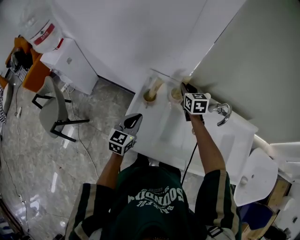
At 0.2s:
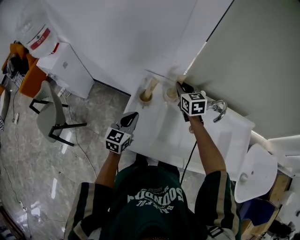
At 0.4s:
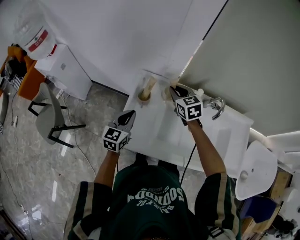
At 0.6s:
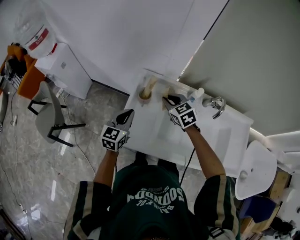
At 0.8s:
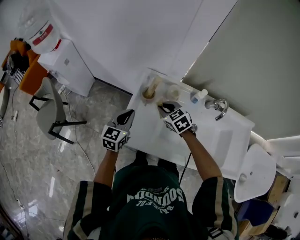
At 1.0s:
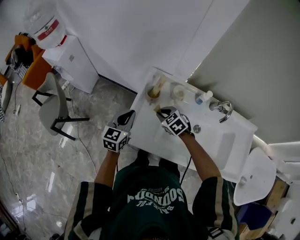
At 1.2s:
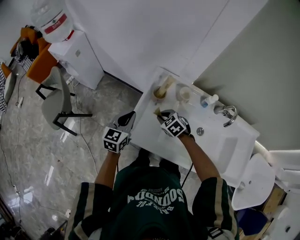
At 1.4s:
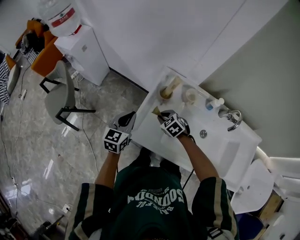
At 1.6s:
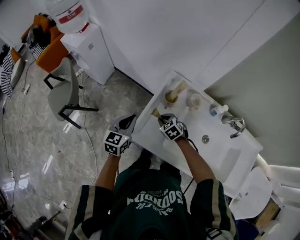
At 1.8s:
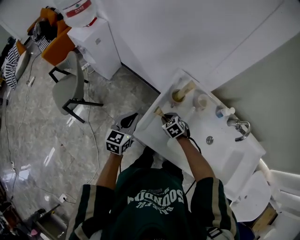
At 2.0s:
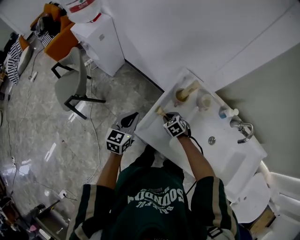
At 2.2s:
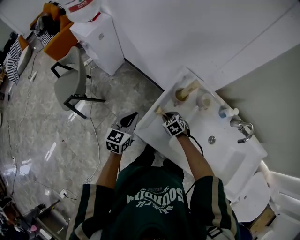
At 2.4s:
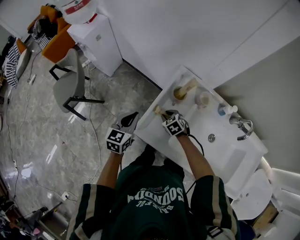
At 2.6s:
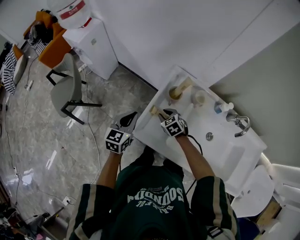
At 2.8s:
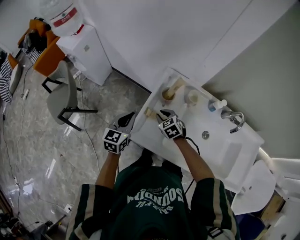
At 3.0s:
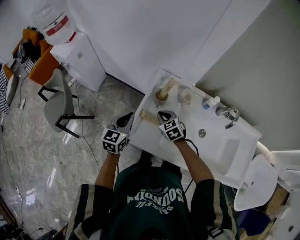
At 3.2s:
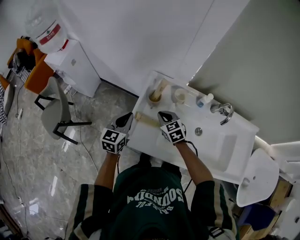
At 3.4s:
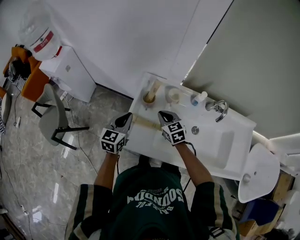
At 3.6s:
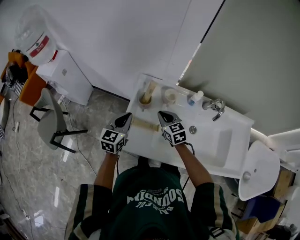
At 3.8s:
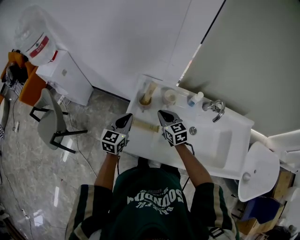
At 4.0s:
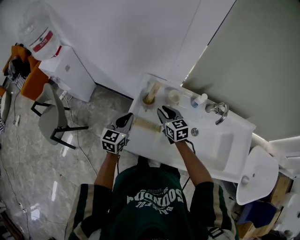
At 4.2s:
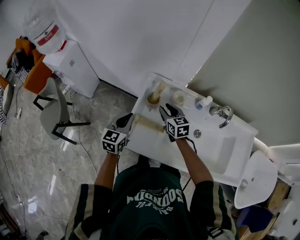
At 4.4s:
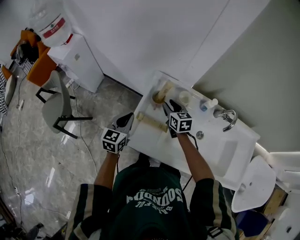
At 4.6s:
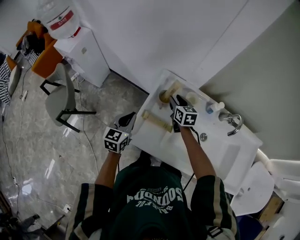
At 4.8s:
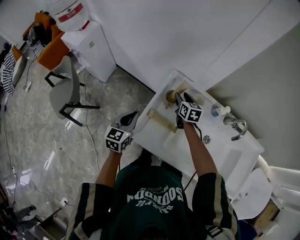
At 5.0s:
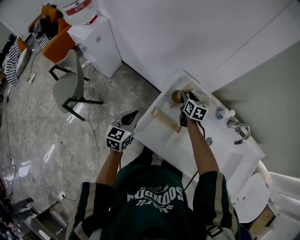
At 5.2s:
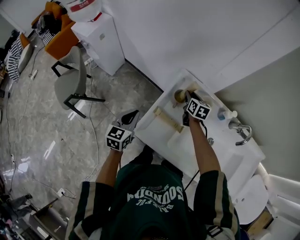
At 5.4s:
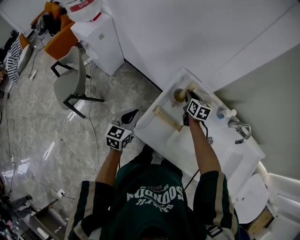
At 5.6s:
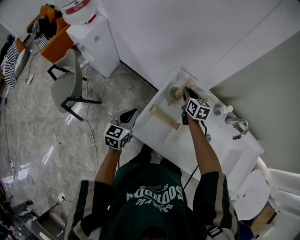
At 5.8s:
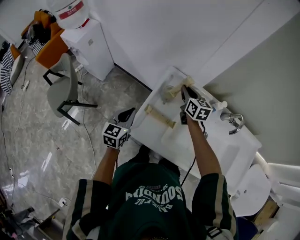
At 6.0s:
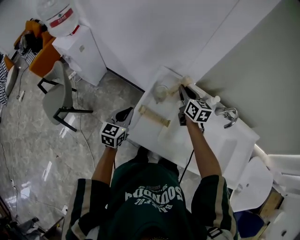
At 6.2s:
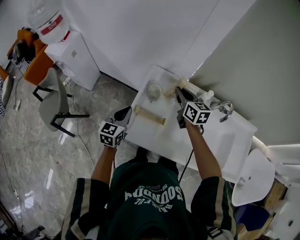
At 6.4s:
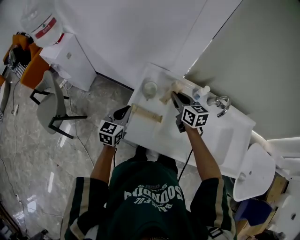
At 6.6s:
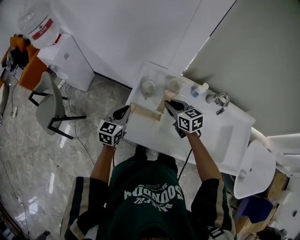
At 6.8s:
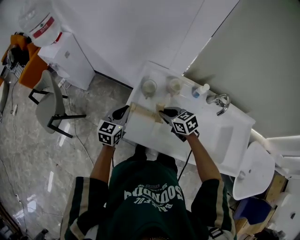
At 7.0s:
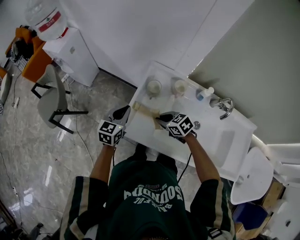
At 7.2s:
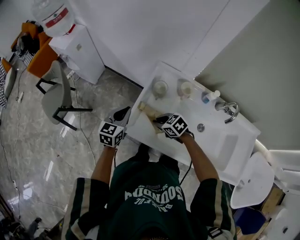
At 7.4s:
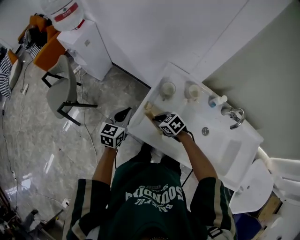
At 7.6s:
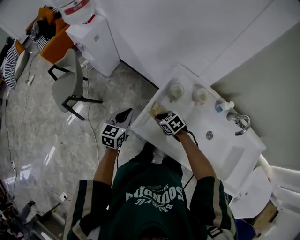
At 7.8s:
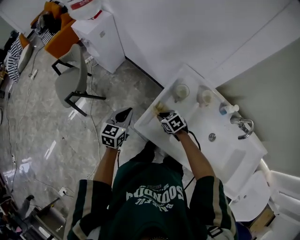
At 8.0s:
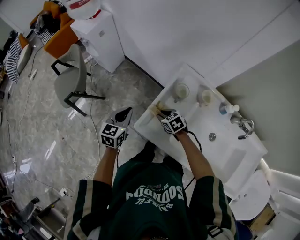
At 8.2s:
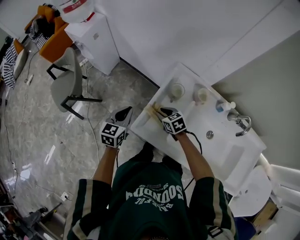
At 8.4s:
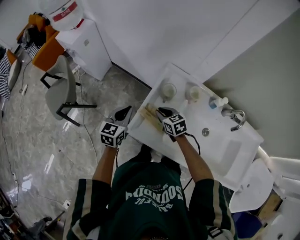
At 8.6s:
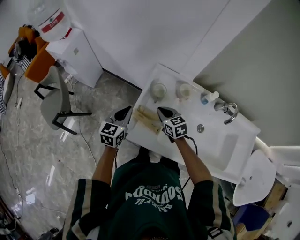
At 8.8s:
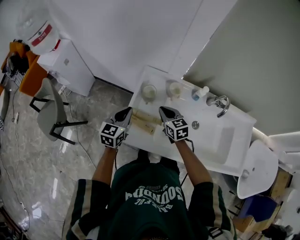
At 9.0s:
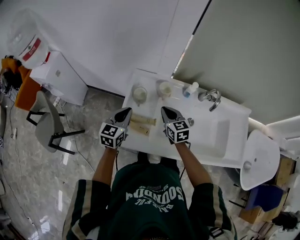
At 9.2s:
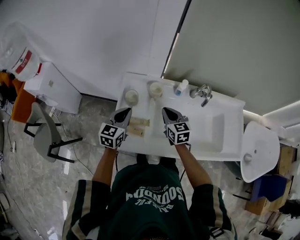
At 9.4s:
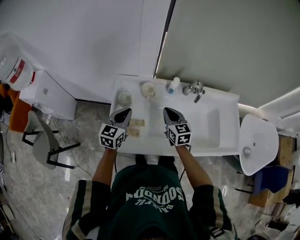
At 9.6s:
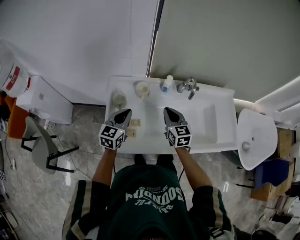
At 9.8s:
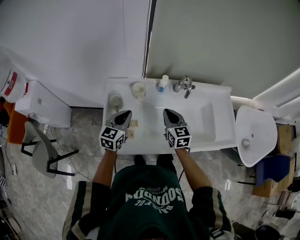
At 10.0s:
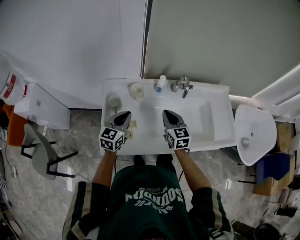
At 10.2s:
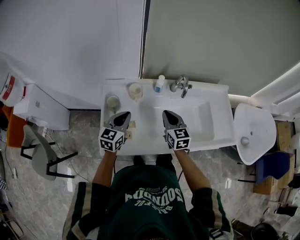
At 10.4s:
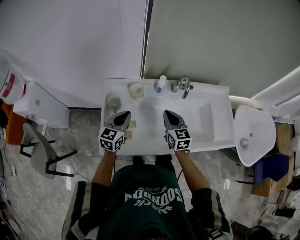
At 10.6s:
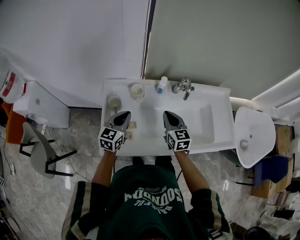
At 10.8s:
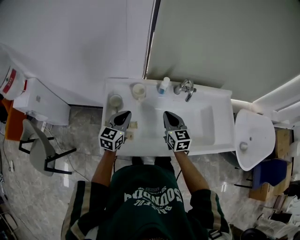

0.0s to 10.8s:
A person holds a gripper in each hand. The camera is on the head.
0.0s to 1.6s: The right gripper moves some 30 cm, and changes its angle by some 50 degrees; the left gripper ends up some 15 cm from where it was.
1.6s to 3.0s: The right gripper travels upward by roughly 5 cm.
3.0s to 4.6s: The right gripper goes some 10 cm forward and to the right, changes its angle by some 30 degrees, and opens up.
4.6s to 6.2s: The right gripper moves upward and to the right, about 10 cm, and closes its fingers.
6.2s to 7.8s: The left gripper ends up approximately 10 cm from where it was. Meanwhile the right gripper travels downward by roughly 20 cm, and tilts its fingers roughly 40 degrees downward.
7.8s to 9.2s: The right gripper changes place by approximately 30 cm, and tips its fingers upward by about 30 degrees; the left gripper shifts by some 20 cm, and rotates about 30 degrees.
9.2s to 10.8s: Both grippers move to the right, about 10 cm.

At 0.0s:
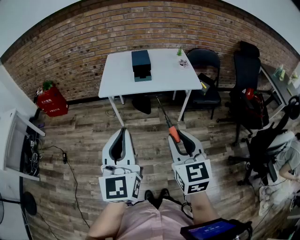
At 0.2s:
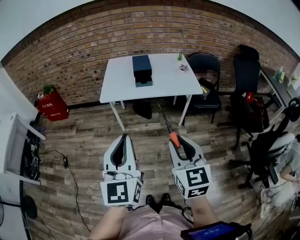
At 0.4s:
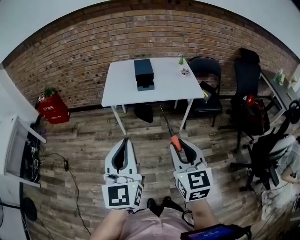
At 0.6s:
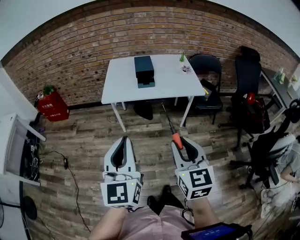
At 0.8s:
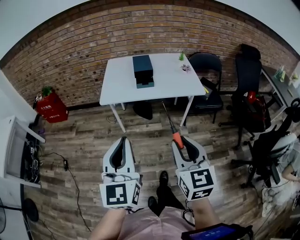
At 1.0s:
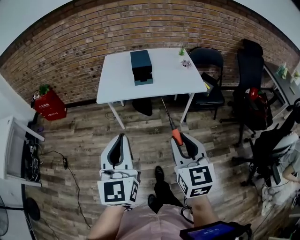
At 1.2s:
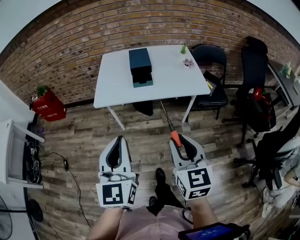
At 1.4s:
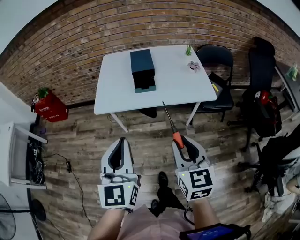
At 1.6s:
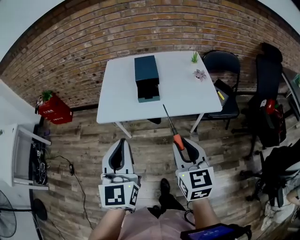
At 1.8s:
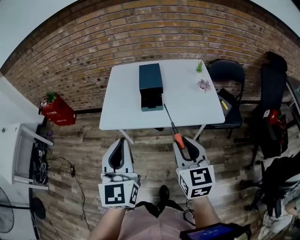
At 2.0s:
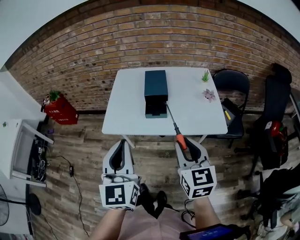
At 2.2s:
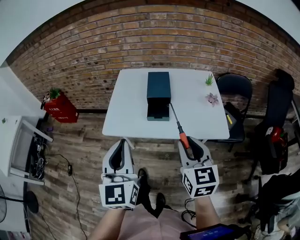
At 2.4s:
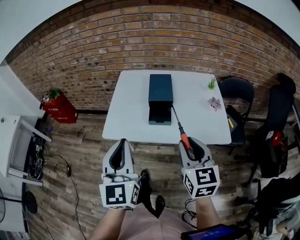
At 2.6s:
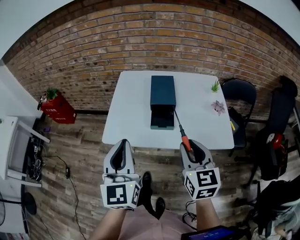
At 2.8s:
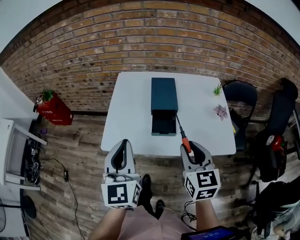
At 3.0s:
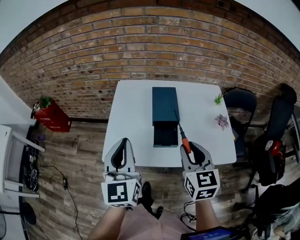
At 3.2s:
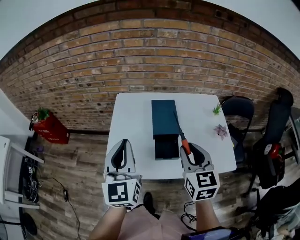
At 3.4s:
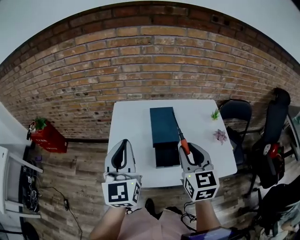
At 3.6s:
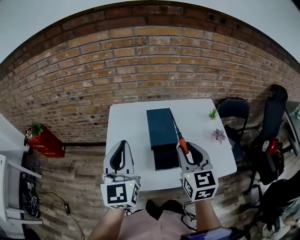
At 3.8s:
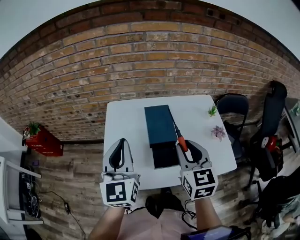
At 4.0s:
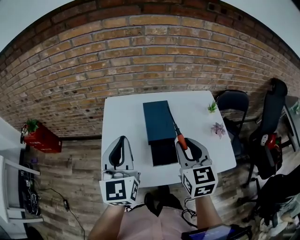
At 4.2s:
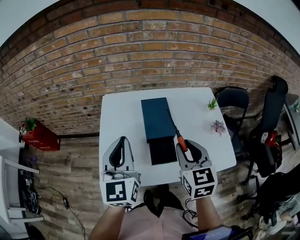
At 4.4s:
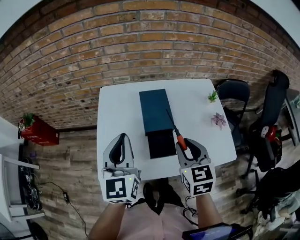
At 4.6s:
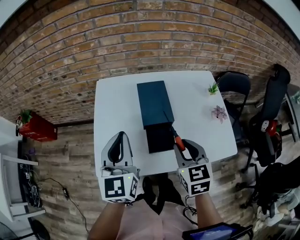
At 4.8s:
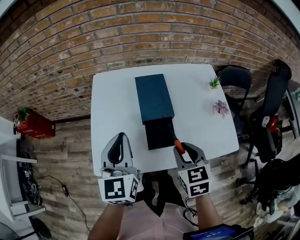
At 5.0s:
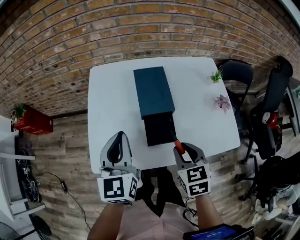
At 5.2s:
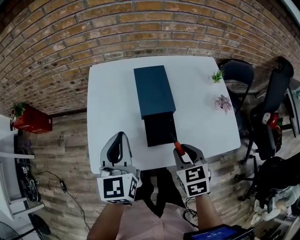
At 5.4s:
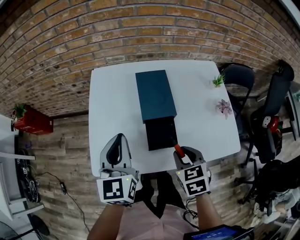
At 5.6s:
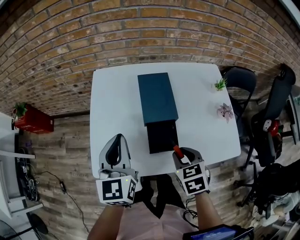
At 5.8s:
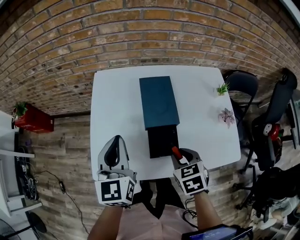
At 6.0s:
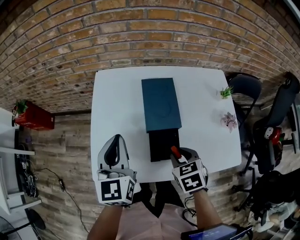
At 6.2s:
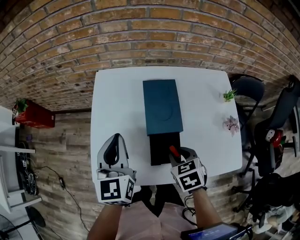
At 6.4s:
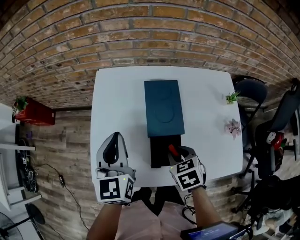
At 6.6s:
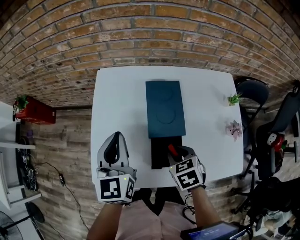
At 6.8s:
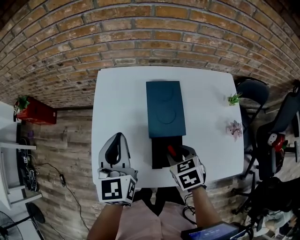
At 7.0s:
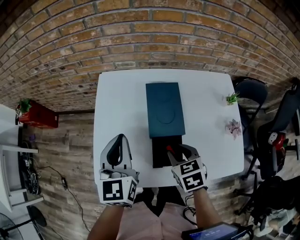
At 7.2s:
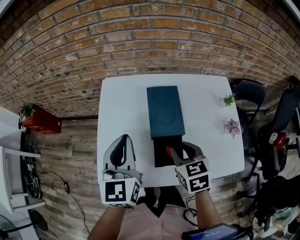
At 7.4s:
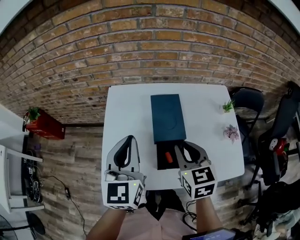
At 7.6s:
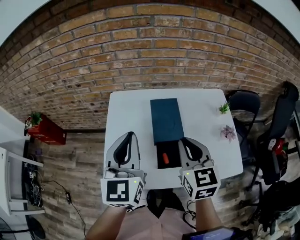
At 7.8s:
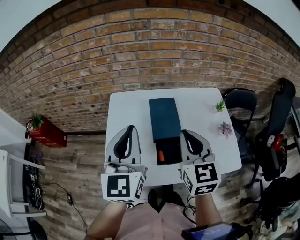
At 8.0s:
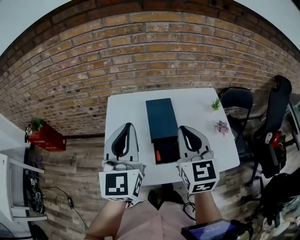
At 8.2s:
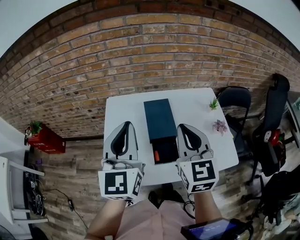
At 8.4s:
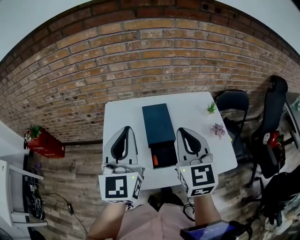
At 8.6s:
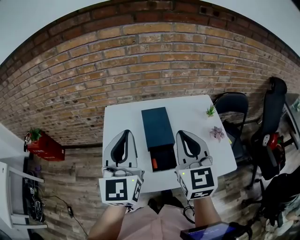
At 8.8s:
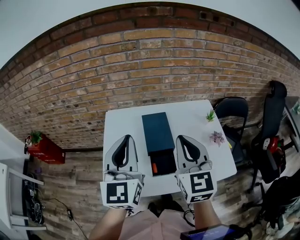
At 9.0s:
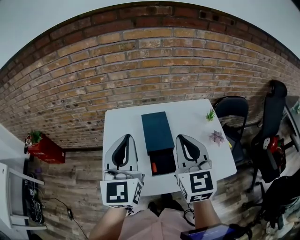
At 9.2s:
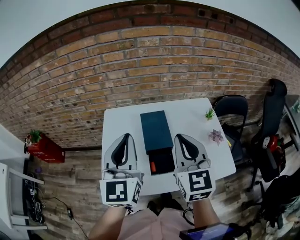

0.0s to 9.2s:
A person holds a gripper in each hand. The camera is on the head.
0.0s to 1.6s: The two grippers go roughly 20 cm forward.
1.6s to 3.0s: Both grippers move forward, approximately 25 cm.
3.0s to 4.6s: The left gripper goes roughly 10 cm forward, while the right gripper goes roughly 10 cm downward and forward.
4.6s to 6.2s: The right gripper is displaced downward by roughly 10 cm, and rotates about 30 degrees, while the left gripper moves forward and downward, approximately 10 cm.
6.2s to 7.6s: The right gripper heads upward, covering some 20 cm, and angles its fingers upward, by roughly 40 degrees. Meanwhile the left gripper travels upward by roughly 10 cm.
7.6s to 9.2s: The left gripper travels upward by approximately 5 cm. The right gripper goes approximately 10 cm upward.

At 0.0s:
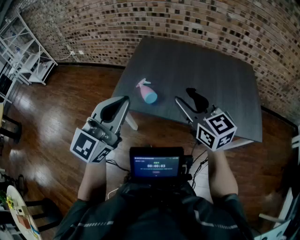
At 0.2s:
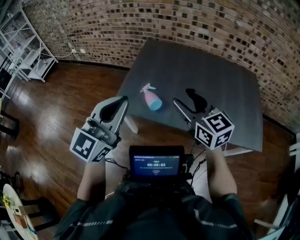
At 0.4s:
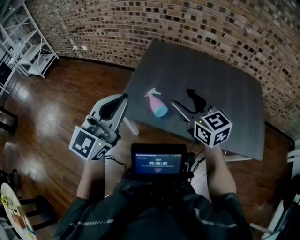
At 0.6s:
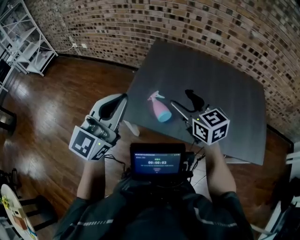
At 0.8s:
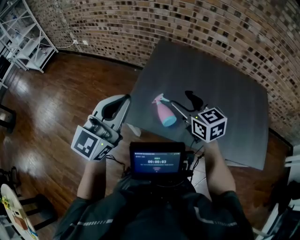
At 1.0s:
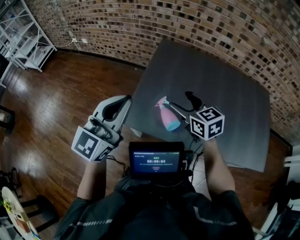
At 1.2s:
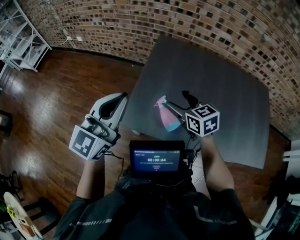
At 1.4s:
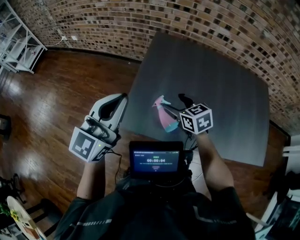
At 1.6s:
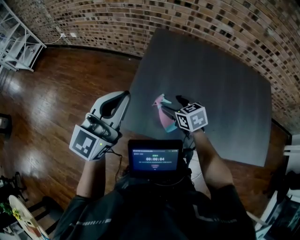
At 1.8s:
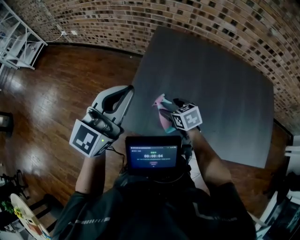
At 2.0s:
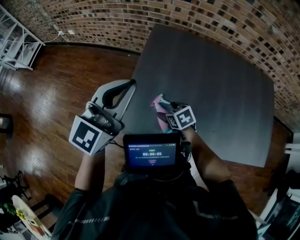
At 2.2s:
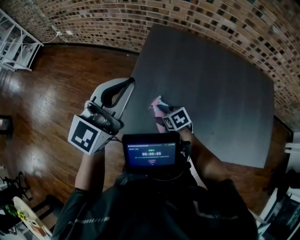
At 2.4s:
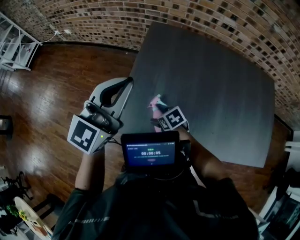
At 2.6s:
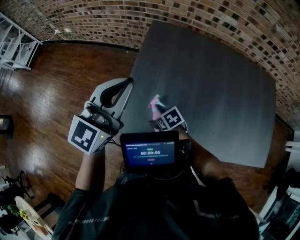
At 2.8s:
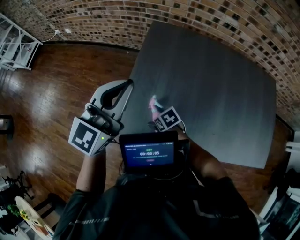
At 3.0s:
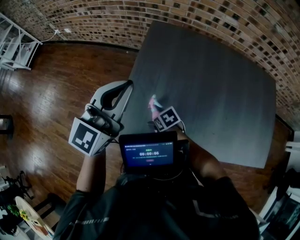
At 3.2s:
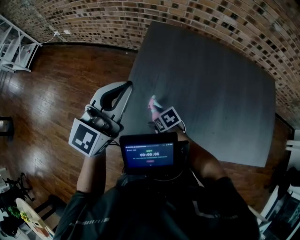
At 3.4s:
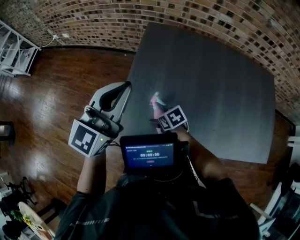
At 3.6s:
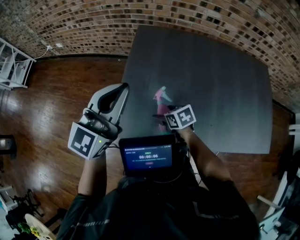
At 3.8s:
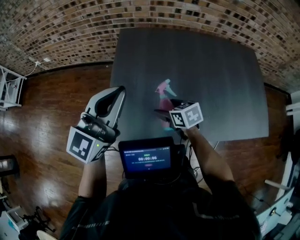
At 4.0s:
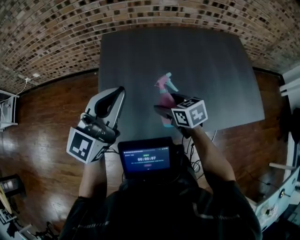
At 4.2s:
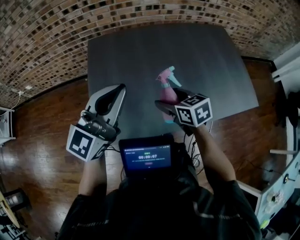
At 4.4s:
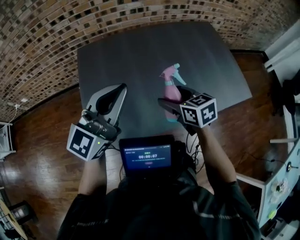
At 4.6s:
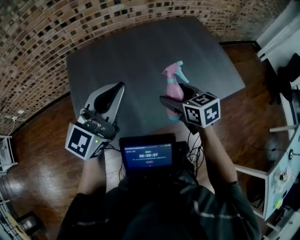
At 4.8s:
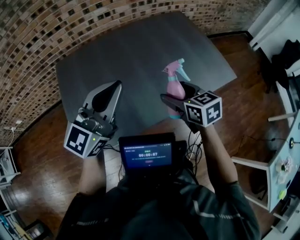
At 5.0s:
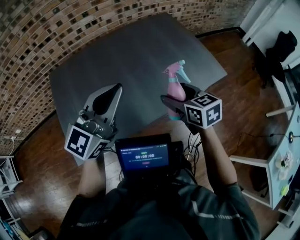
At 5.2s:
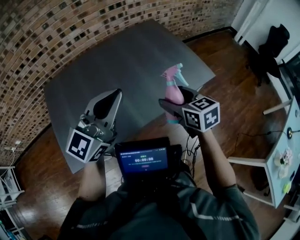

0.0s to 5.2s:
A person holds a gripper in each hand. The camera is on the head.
0.0s to 1.8s: The left gripper goes roughly 35 cm forward; the right gripper heads forward, downward and to the left, covering about 50 cm, points its fingers roughly 40 degrees further downward, and opens up.
1.8s to 3.4s: The right gripper heads downward, covering some 10 cm, and turns by roughly 20 degrees.
3.4s to 5.2s: The pair of grippers is taken about 50 cm. The left gripper rotates some 50 degrees, while the right gripper rotates roughly 70 degrees.
